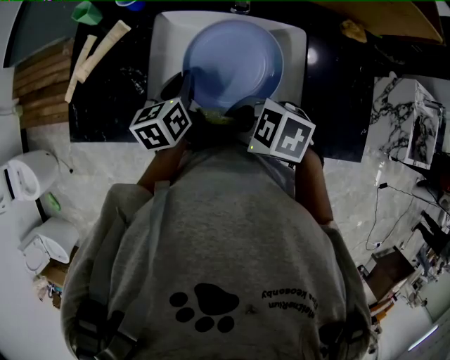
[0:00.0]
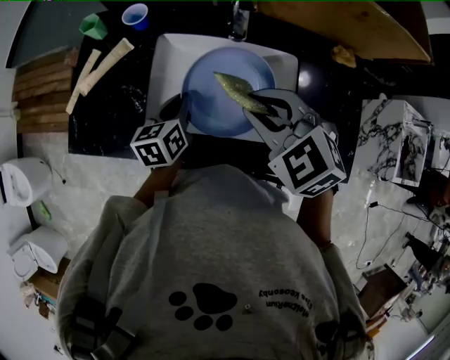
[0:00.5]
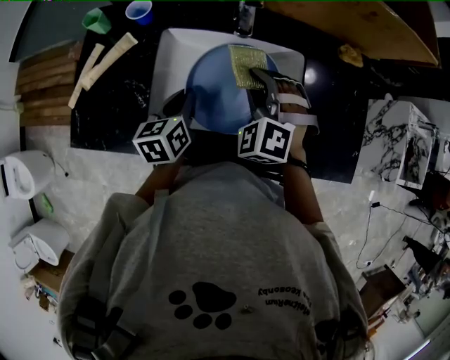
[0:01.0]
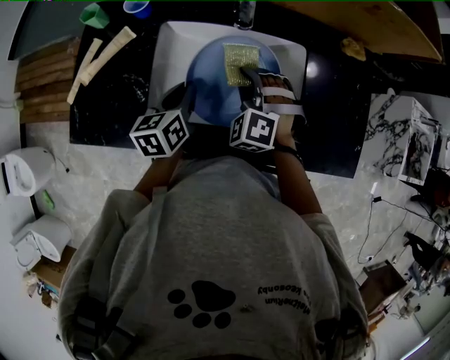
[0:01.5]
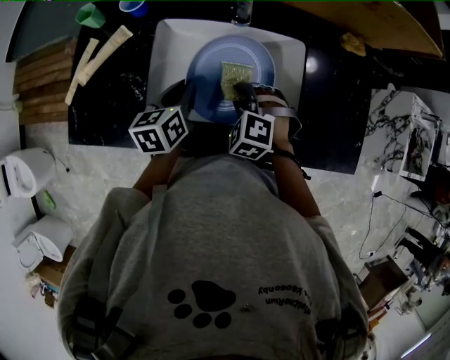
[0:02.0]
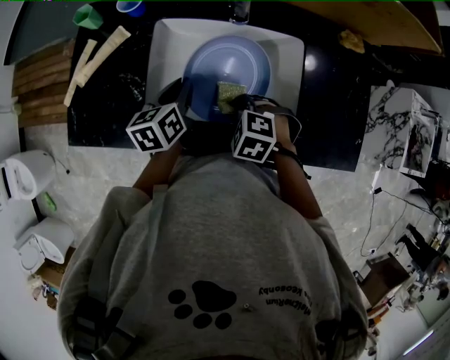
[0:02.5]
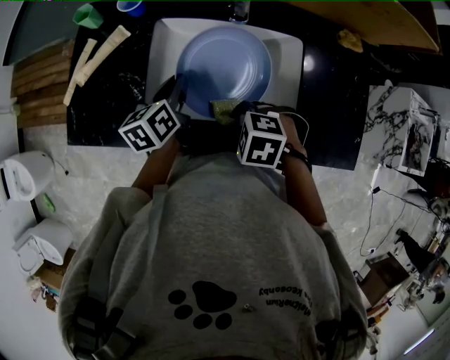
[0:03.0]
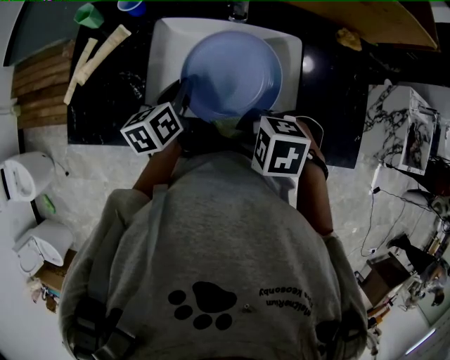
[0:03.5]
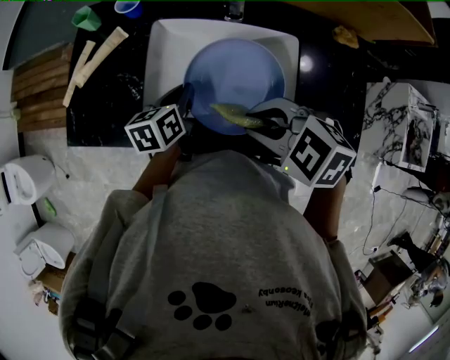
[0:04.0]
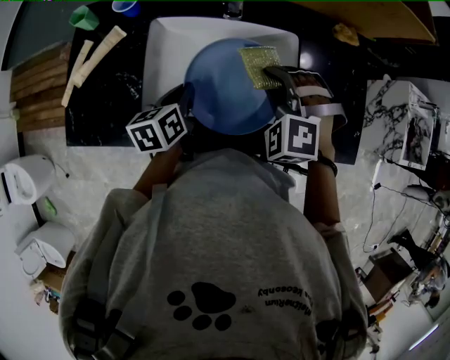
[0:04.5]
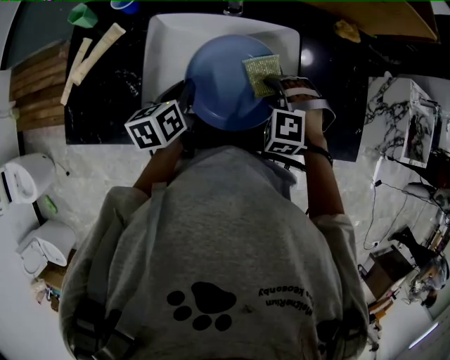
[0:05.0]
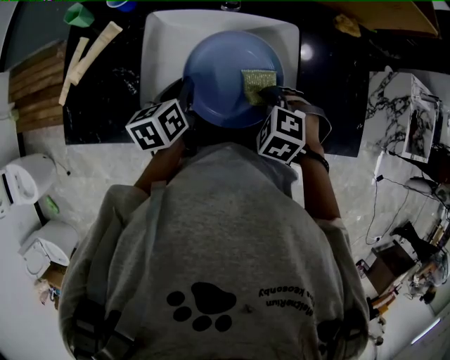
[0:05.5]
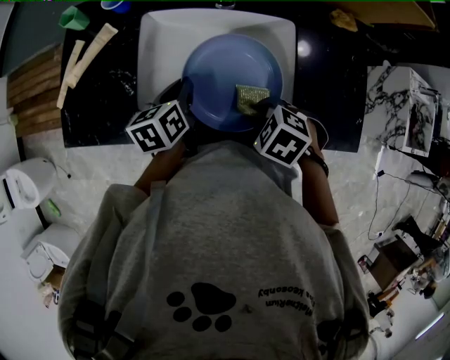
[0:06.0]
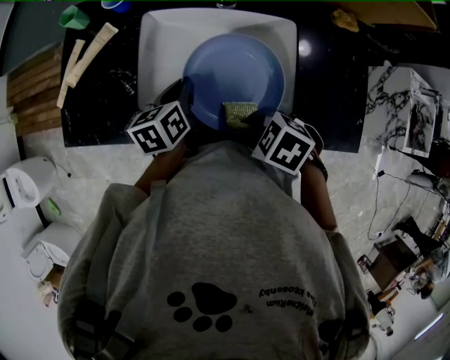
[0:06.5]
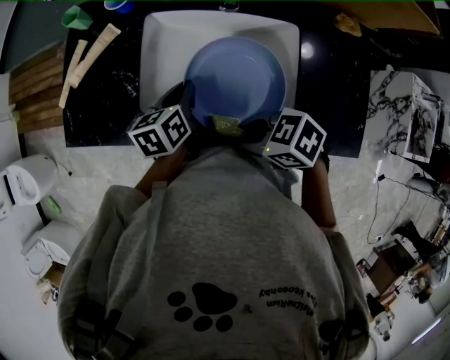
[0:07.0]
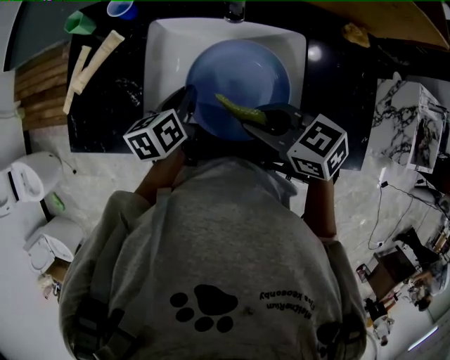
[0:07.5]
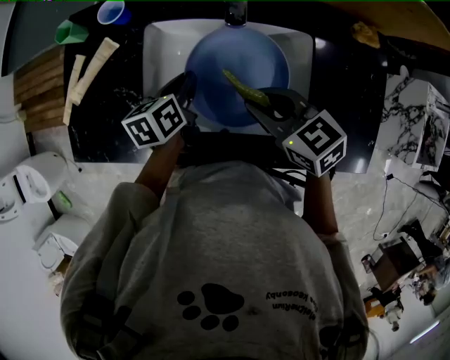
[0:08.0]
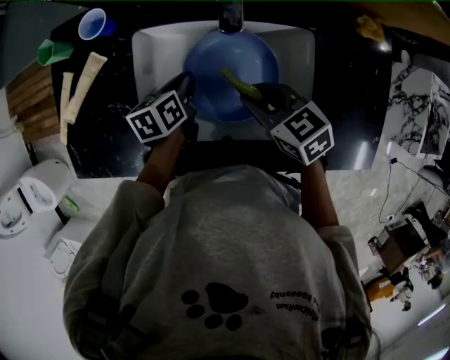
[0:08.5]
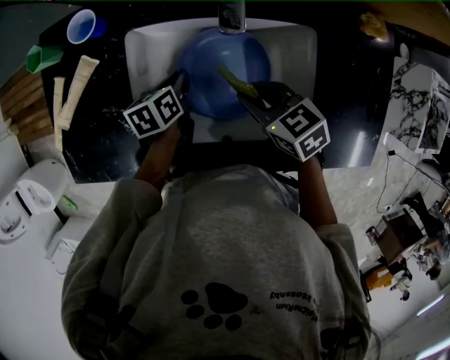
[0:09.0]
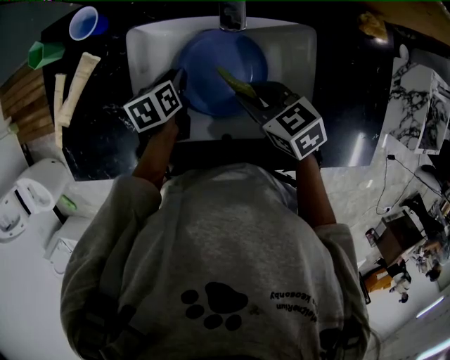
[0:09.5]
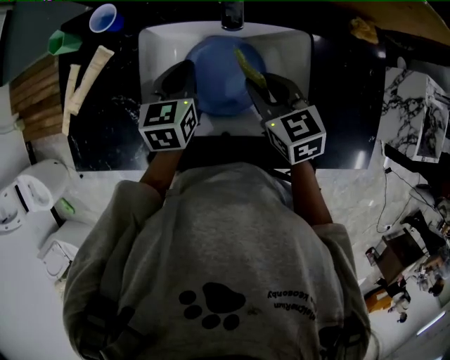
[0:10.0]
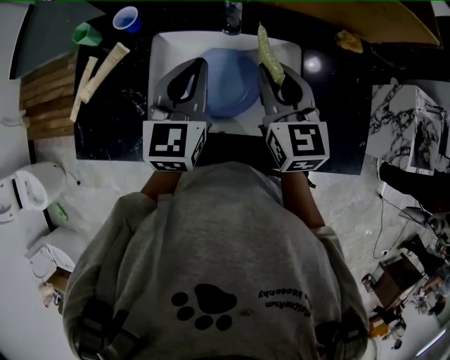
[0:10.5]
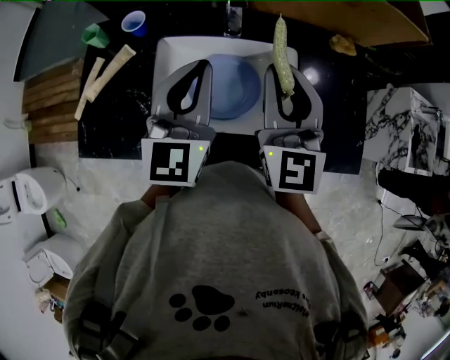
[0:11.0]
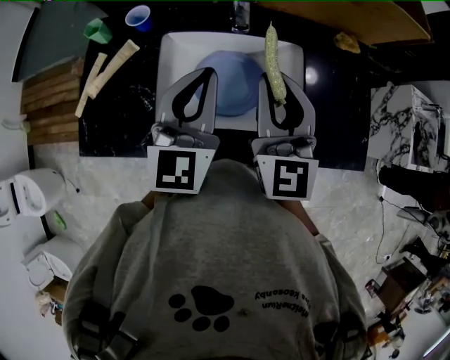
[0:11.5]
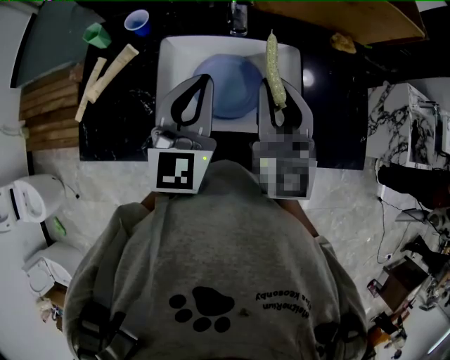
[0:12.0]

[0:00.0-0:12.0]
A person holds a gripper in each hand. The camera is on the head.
0:00.0 to 0:02.0: The right gripper ends up about 15 cm from where it was, and changes its angle by roughly 50 degrees.
0:02.0 to 0:04.0: The right gripper heads upward, covering about 15 cm, and rotates roughly 40 degrees.
0:04.0 to 0:06.0: The right gripper moves downward, roughly 10 cm, and swivels approximately 30 degrees.
0:06.0 to 0:08.0: The left gripper travels forward by some 5 cm, while the right gripper travels forward and upward by roughly 15 cm, and tips its fingers upward by roughly 40 degrees.
0:08.0 to 0:10.0: The left gripper reaches about 10 cm downward, then returns, and swivels roughly 30 degrees.
0:10.0 to 0:12.0: The left gripper heads upward and backward, covering some 20 cm, and turns by approximately 40 degrees. Meanwhile the right gripper goes about 20 cm upward, and tips its fingers upward by approximately 40 degrees.

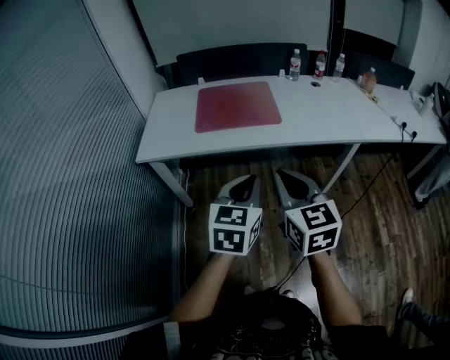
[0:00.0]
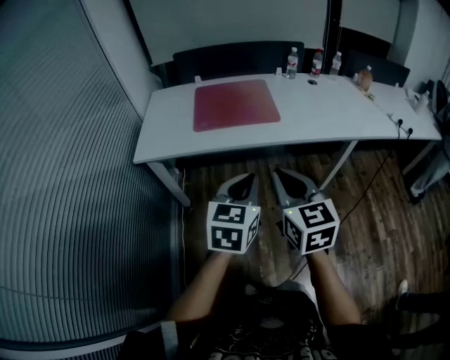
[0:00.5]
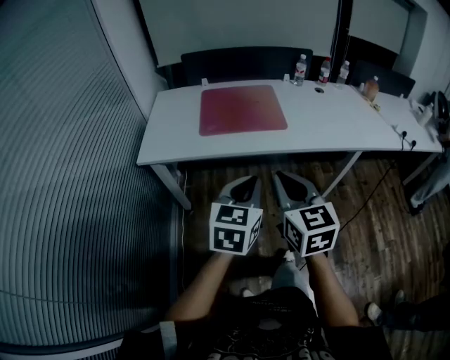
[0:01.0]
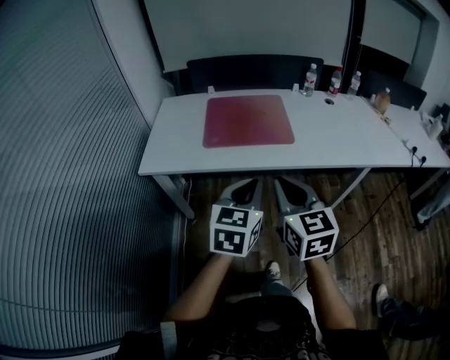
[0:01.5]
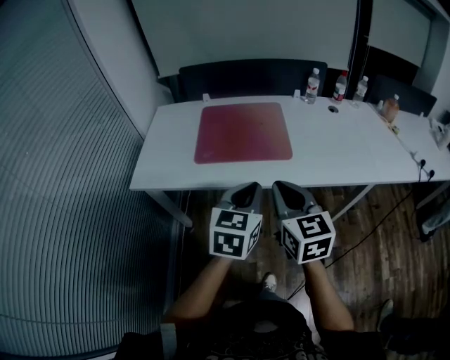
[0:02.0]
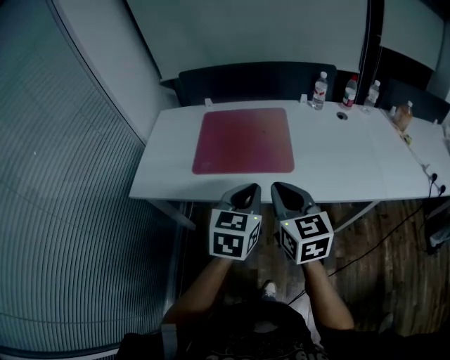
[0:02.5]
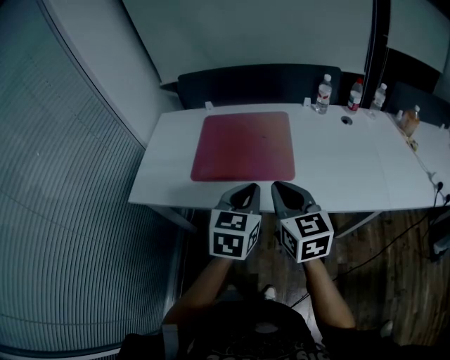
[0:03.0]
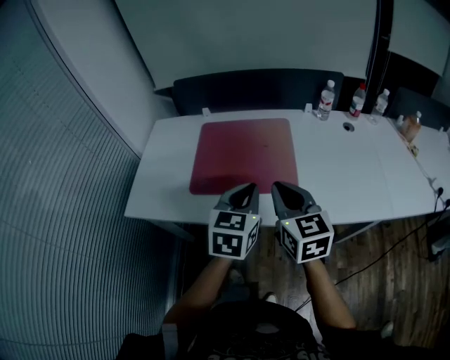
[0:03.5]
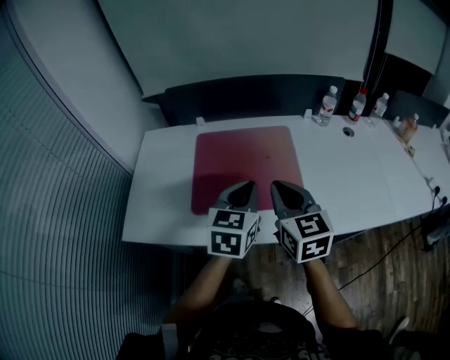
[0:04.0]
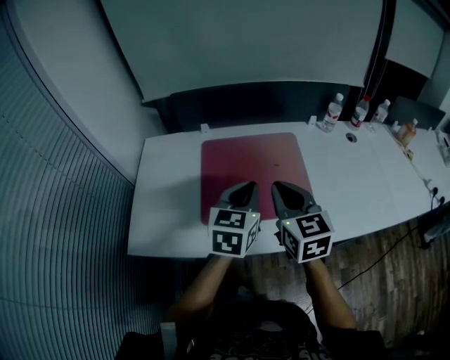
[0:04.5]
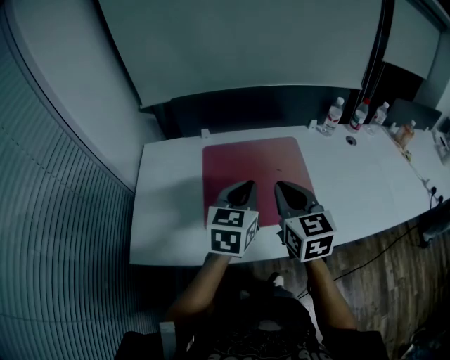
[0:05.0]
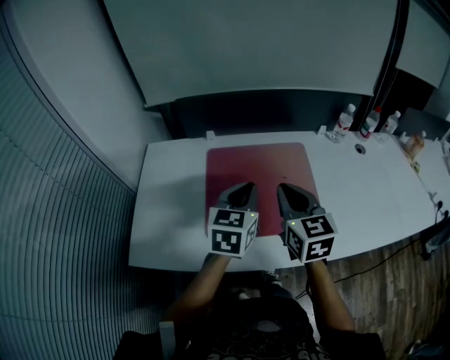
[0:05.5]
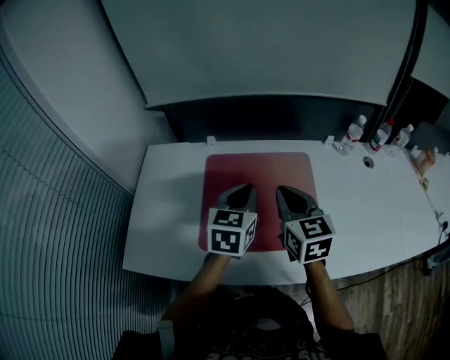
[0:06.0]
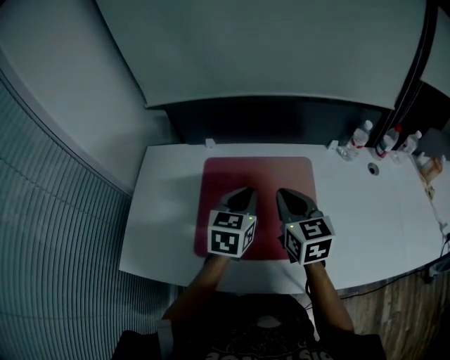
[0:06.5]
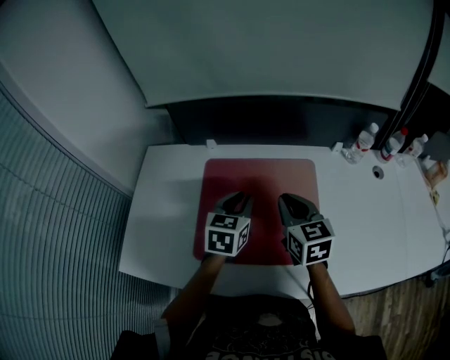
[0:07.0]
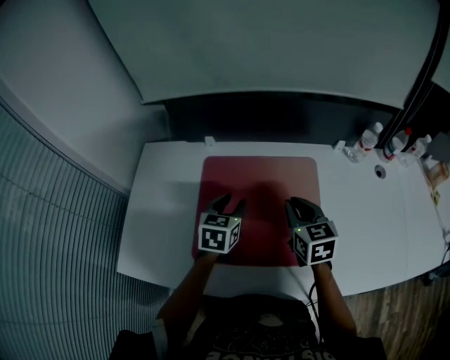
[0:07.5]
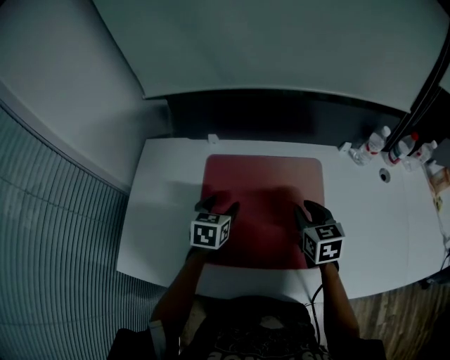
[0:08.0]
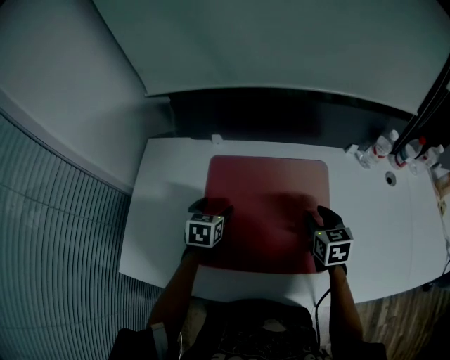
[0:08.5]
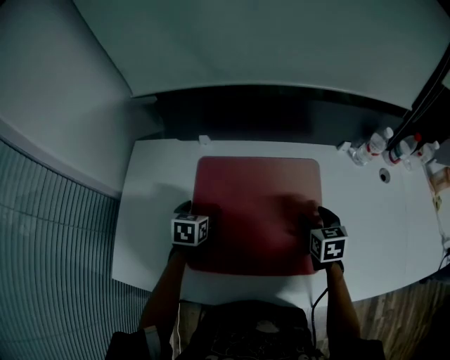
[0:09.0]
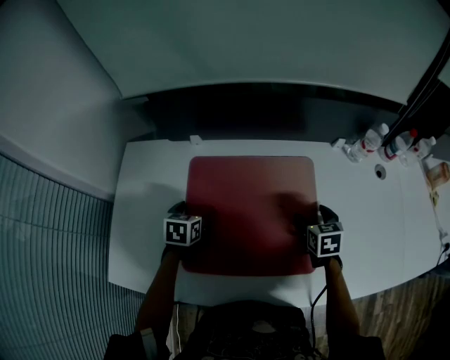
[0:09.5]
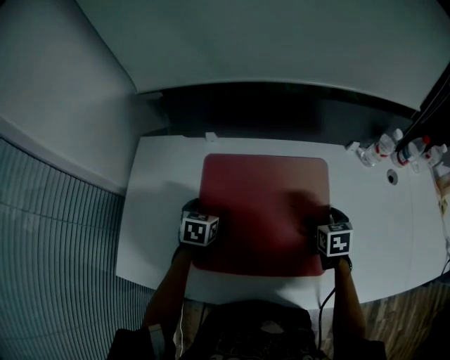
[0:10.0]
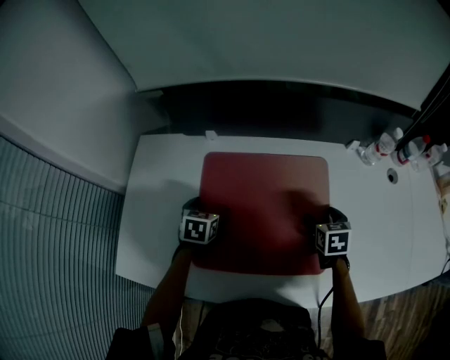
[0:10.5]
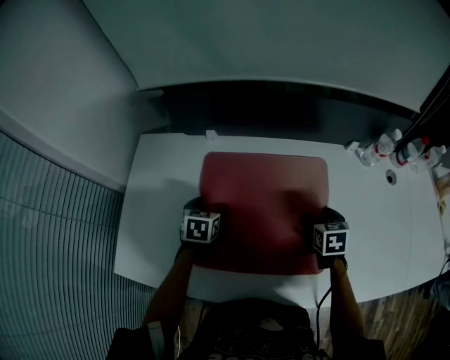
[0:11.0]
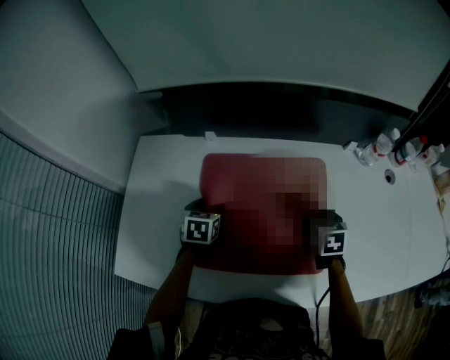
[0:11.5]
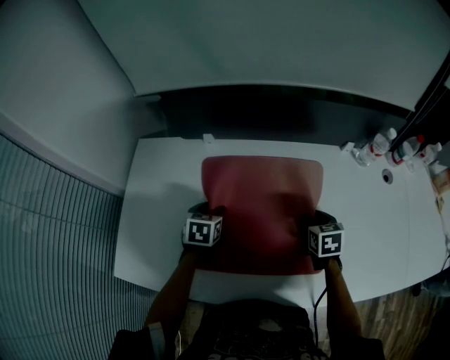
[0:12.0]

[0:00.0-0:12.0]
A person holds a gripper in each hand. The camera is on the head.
0:00.0 to 0:02.0: Both grippers move forward, some 20 cm.
0:02.0 to 0:04.0: The grippers both shift forward by approximately 25 cm.
0:04.0 to 0:06.0: The left gripper heads forward and to the left, covering some 15 cm; the right gripper heads forward, covering about 15 cm.
0:06.0 to 0:08.0: The left gripper moves downward, forward and to the left, roughly 20 cm, and opens, while the right gripper shifts approximately 20 cm downward, to the right and forward.
0:08.0 to 0:10.0: The left gripper heads downward, covering roughly 10 cm, and opens. The right gripper goes roughly 15 cm downward and to the right, changes its angle by some 20 degrees, and opens.
0:10.0 to 0:12.0: The right gripper closes. The left gripper closes up.

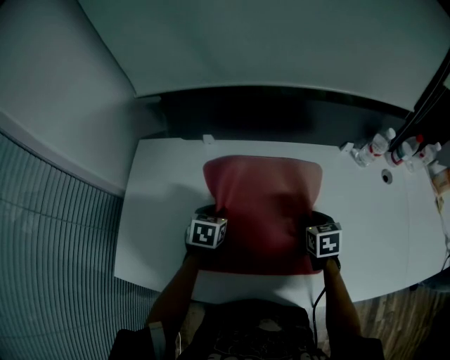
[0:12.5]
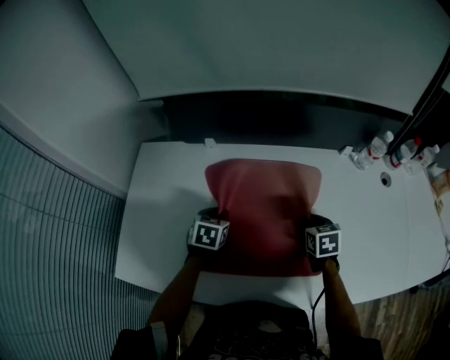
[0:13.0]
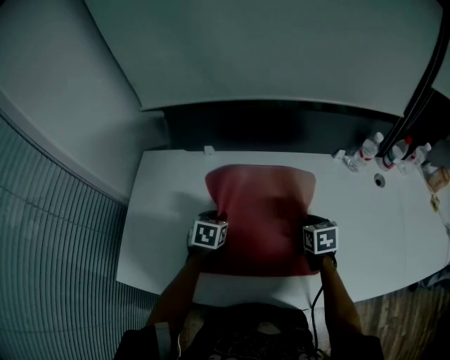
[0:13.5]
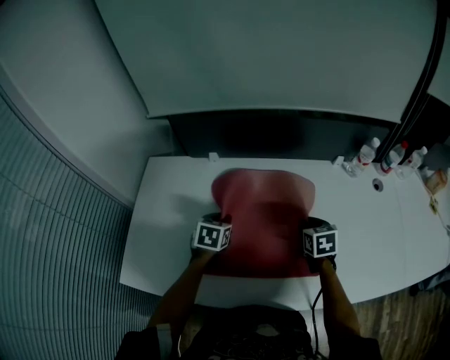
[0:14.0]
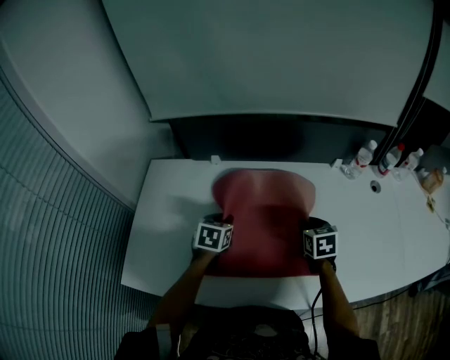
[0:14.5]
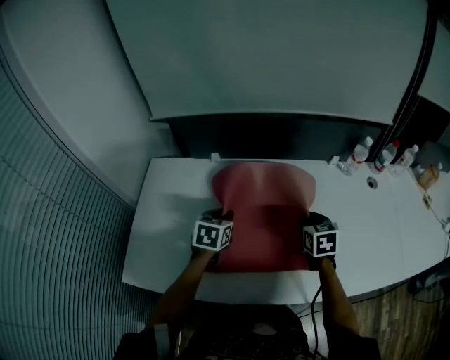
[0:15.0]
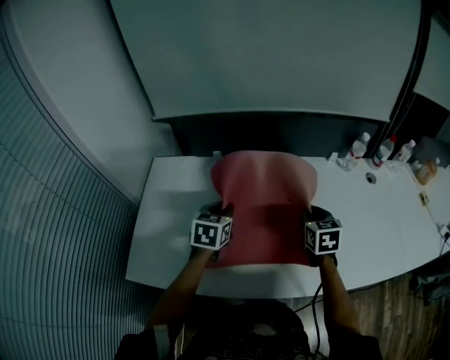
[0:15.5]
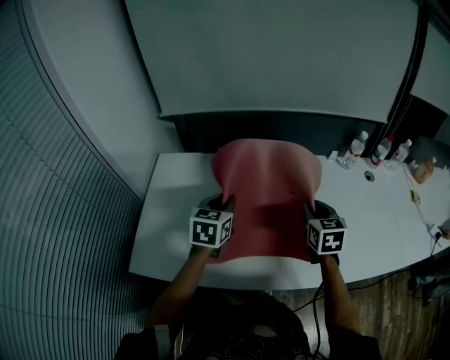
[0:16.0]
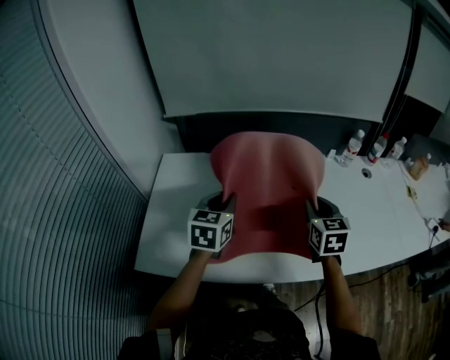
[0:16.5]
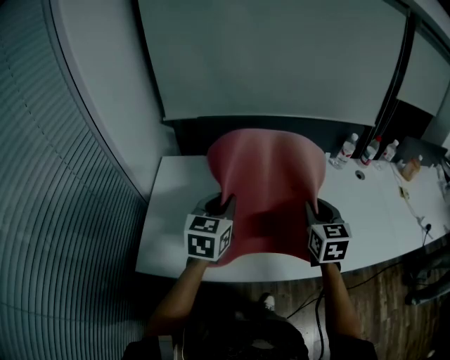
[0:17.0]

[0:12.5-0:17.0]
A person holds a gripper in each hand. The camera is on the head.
0:12.5 to 0:14.5: Both grippers travel together upward, approximately 5 cm.
0:14.5 to 0:17.0: The two grippers go some 25 cm upward and backward. The left gripper turns by roughly 30 degrees. Meanwhile the right gripper rotates approximately 30 degrees.
